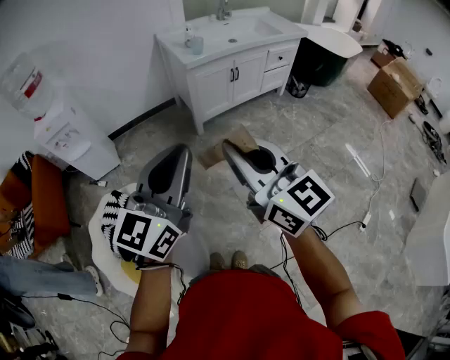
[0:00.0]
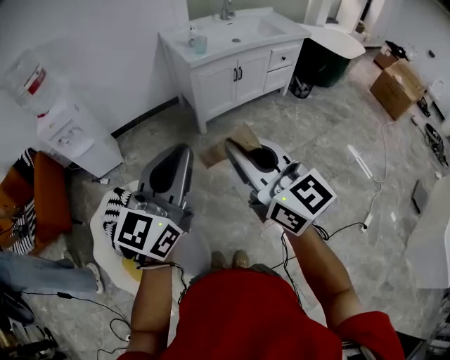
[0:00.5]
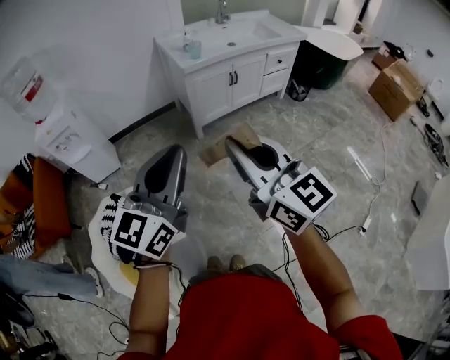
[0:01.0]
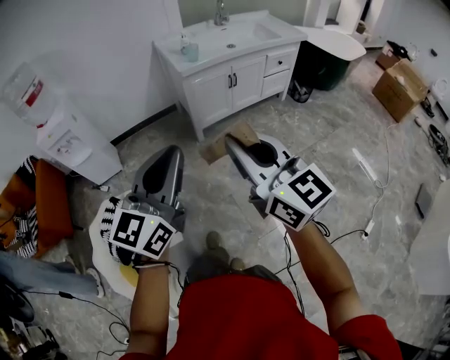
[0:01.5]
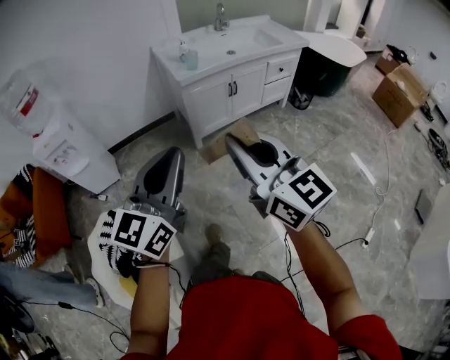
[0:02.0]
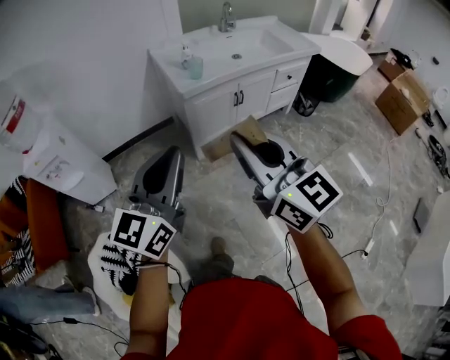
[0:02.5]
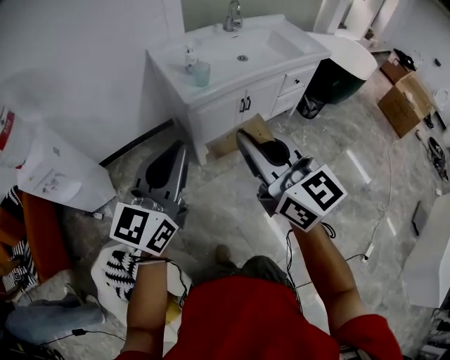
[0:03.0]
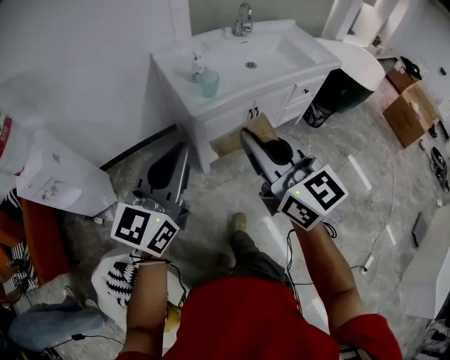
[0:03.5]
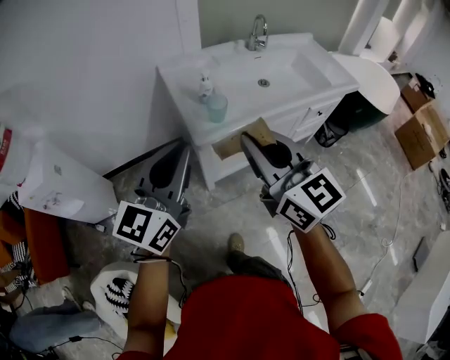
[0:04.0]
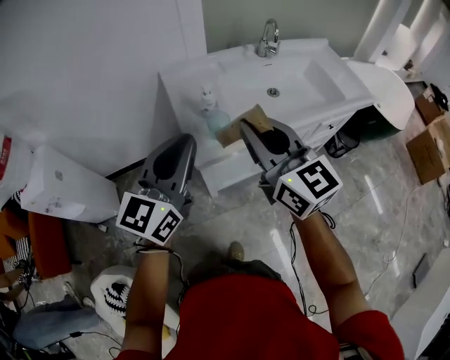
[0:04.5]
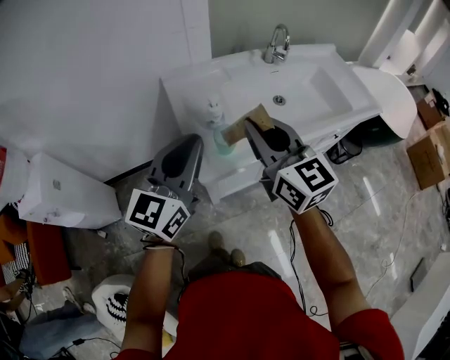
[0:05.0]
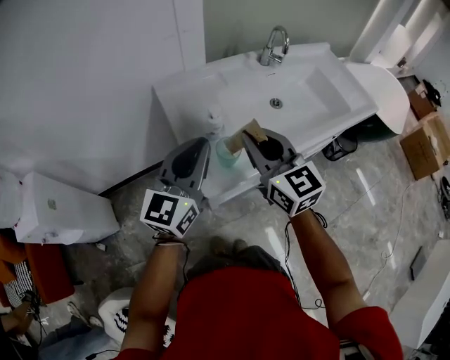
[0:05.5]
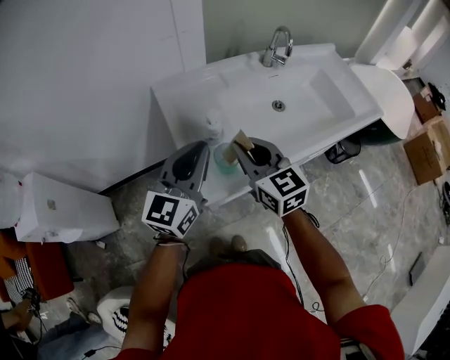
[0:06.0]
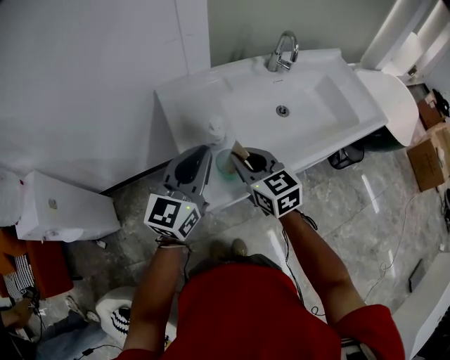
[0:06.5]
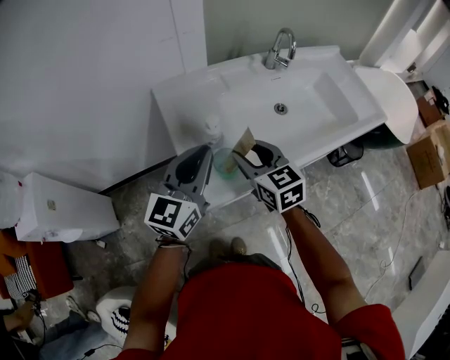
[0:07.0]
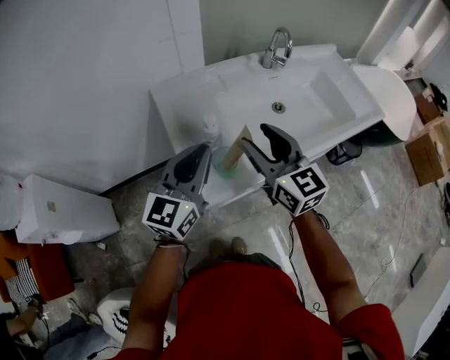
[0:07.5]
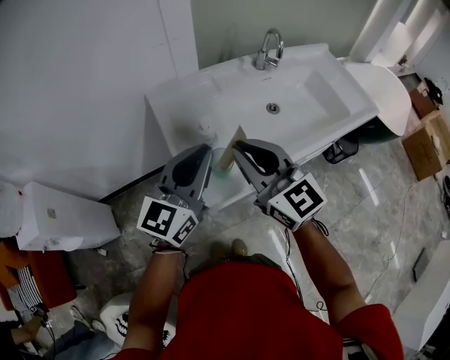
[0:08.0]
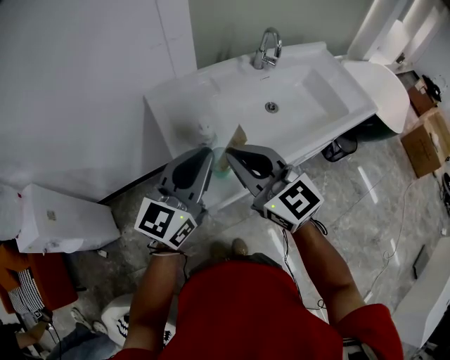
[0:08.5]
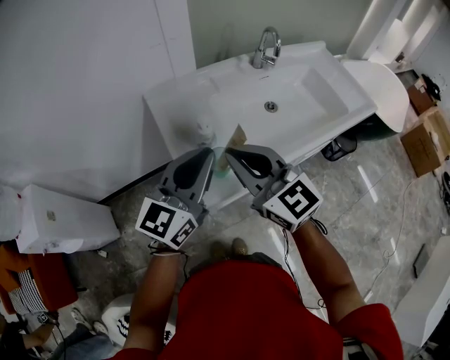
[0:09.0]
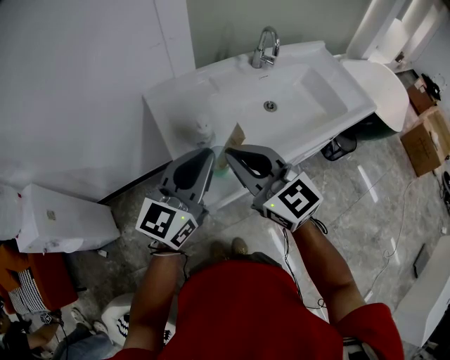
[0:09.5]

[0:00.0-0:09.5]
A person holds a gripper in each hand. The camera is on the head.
0:00.0 to 0:02.0: The left gripper heads forward, covering approximately 10 cm. Meanwhile the right gripper is displaced forward and to the right by some 10 cm.
0:02.0 to 0:04.0: The pair of grippers is taken forward, roughly 50 cm.
0:04.0 to 0:05.5: Both grippers move forward, some 25 cm.
0:05.5 to 0:07.5: The right gripper travels downward and back again, about 10 cm each way, and opens.
0:07.5 to 0:09.5: The left gripper moves approximately 5 cm; the right gripper moves backward and to the left, about 10 cm, and closes up.

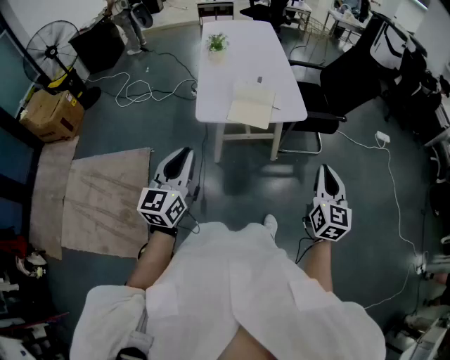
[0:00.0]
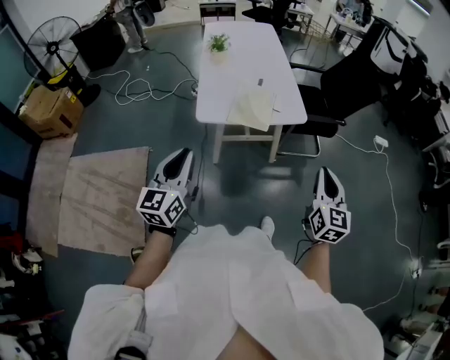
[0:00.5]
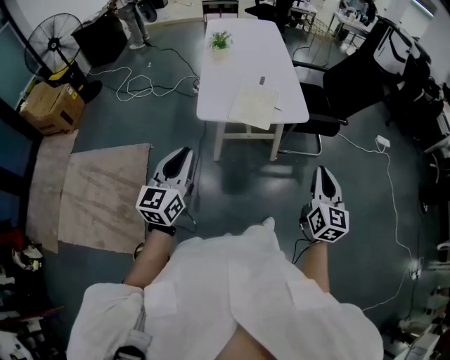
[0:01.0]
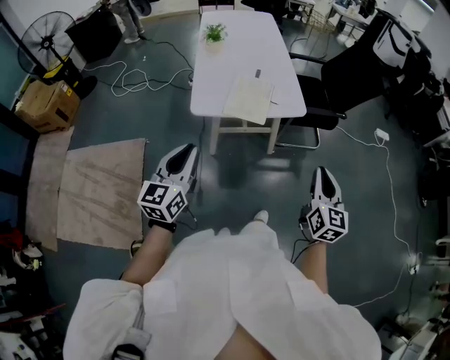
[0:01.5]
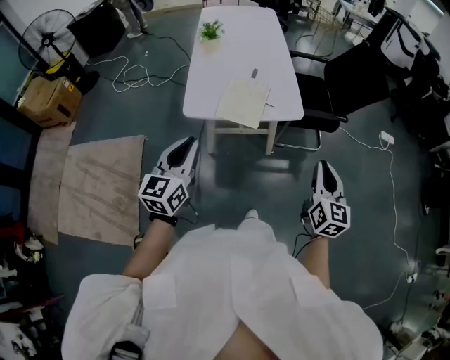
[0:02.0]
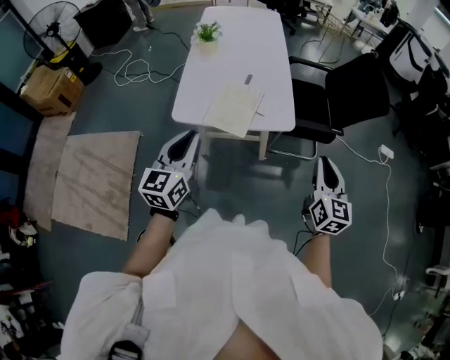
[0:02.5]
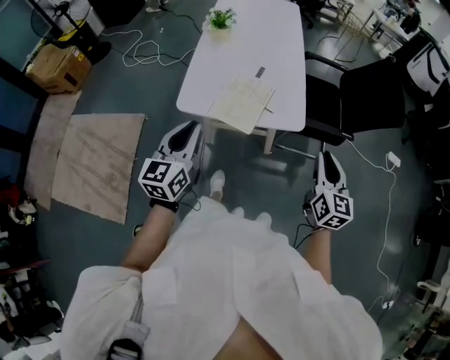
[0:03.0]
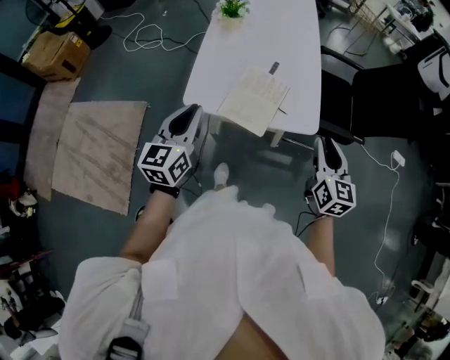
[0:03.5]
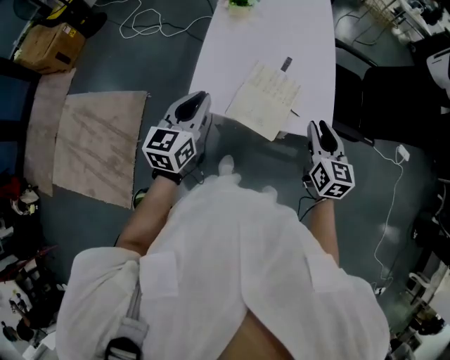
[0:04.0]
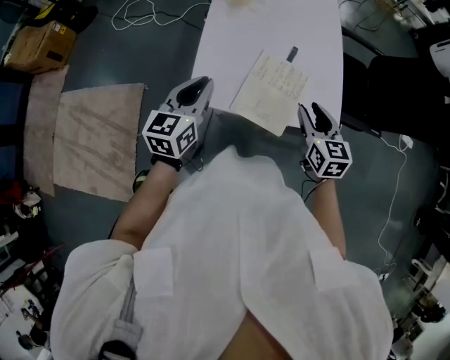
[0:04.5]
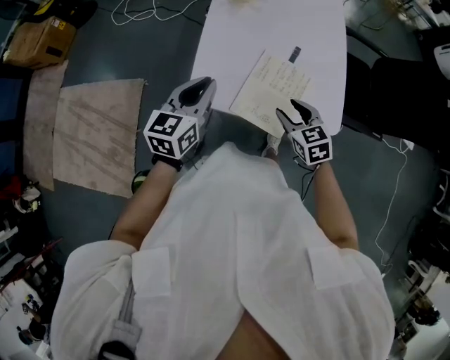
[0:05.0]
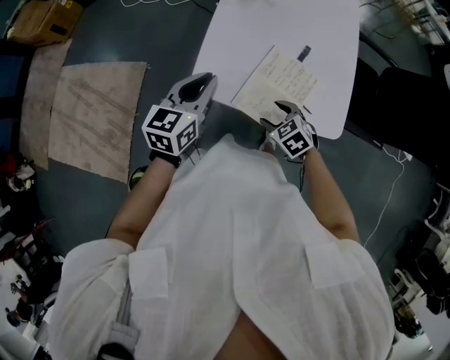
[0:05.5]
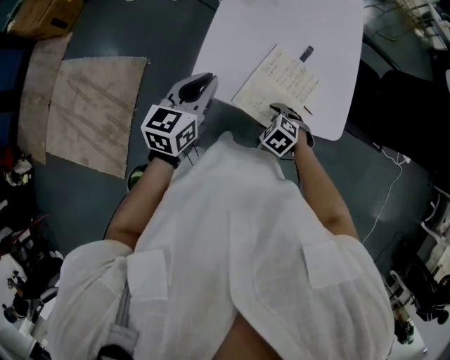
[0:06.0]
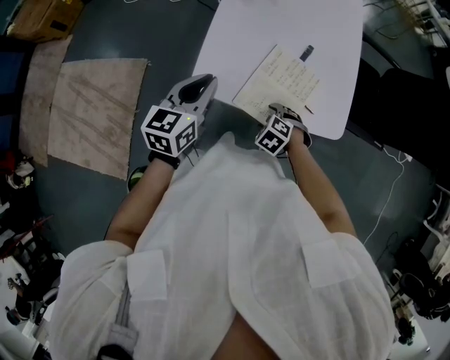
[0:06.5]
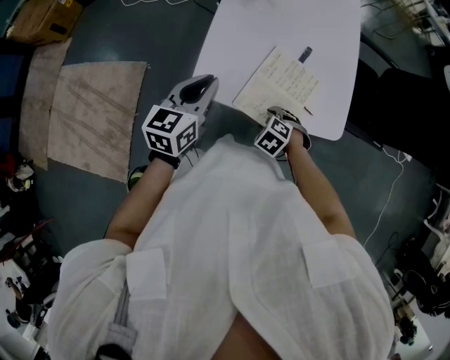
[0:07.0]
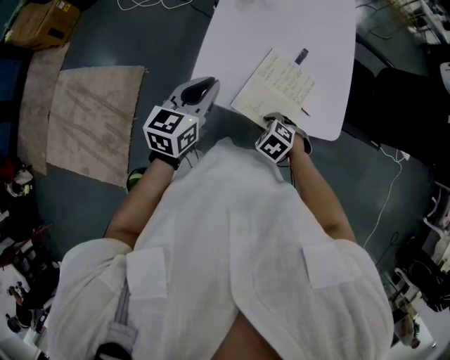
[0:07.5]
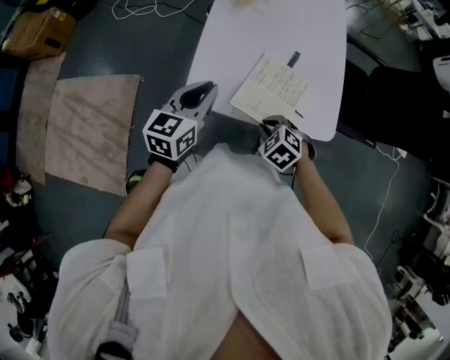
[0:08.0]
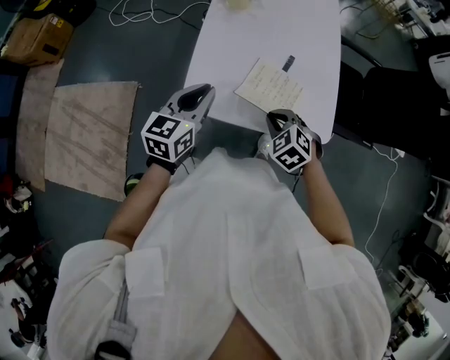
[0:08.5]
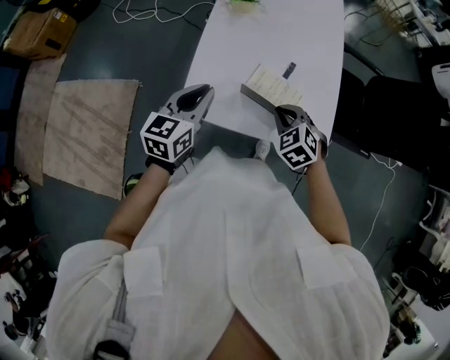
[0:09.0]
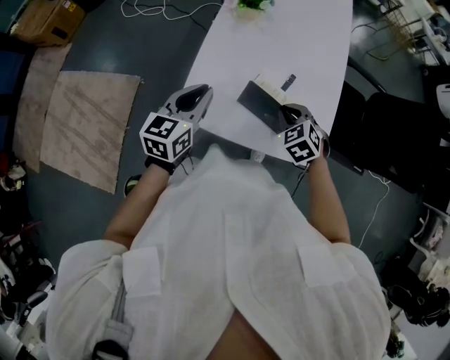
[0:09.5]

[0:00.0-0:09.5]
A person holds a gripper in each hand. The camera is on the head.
0:00.0 to 0:02.0: Both grippers move forward and to the right, some 10 cm.
0:02.0 to 0:04.0: Both grippers travel together forward, about 30 cm. The right gripper turns by some 20 degrees.
0:04.0 to 0:05.5: The left gripper heads forward and downward, covering some 10 cm; the right gripper travels downward and to the left by approximately 25 cm, tilts its fingers roughly 40 degrees downward, and opens.
0:05.5 to 0:07.5: The right gripper closes up.
0:07.5 to 0:09.5: The left gripper shifts by approximately 5 cm, while the right gripper changes place by approximately 20 cm, and swivels about 20 degrees.

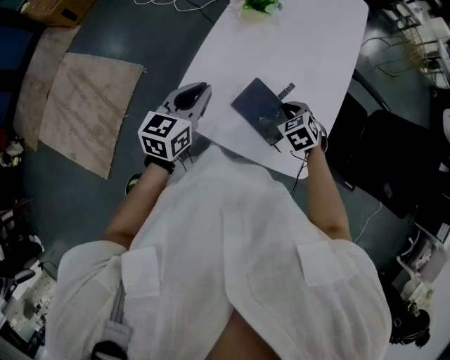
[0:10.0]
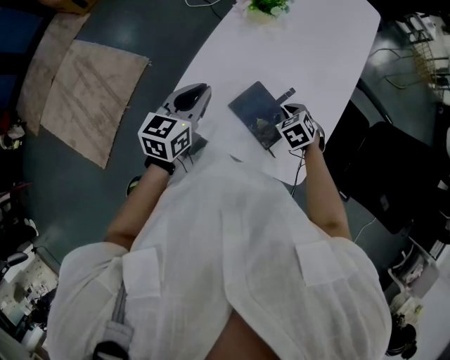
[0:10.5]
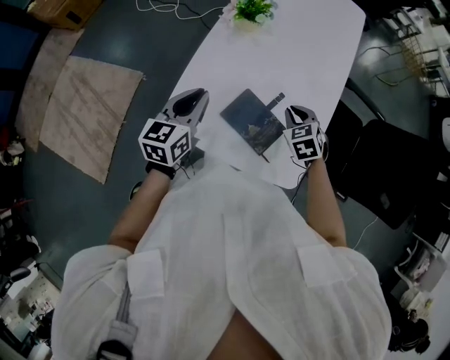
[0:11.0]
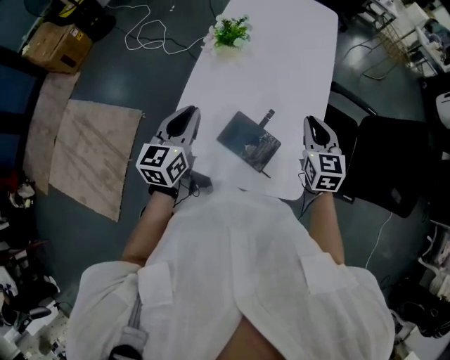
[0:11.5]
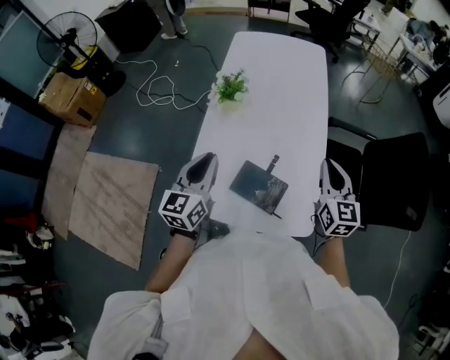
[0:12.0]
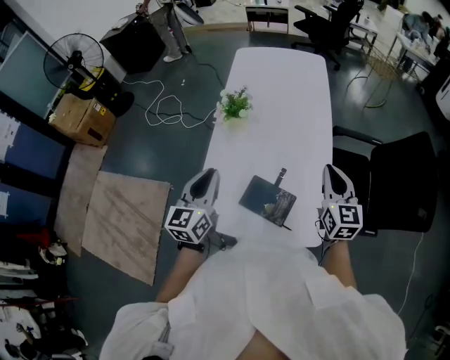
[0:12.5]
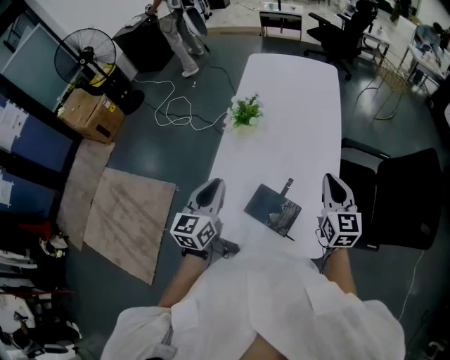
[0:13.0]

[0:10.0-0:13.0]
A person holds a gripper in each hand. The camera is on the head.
0:10.0 to 0:11.5: The right gripper moves upward and to the right, roughly 20 cm, and angles its fingers upward, by about 40 degrees. The left gripper travels upward by approximately 5 cm.
0:11.5 to 0:13.0: The right gripper moves upward, about 5 cm.

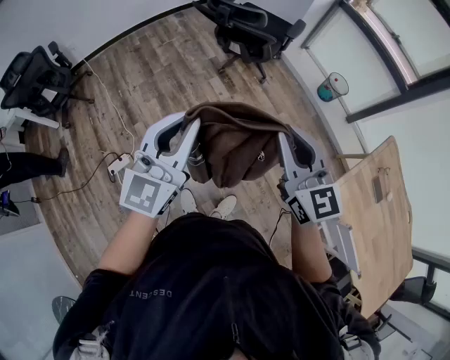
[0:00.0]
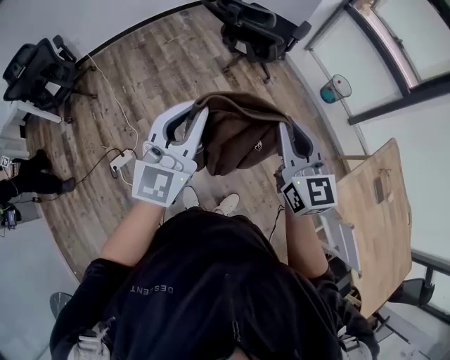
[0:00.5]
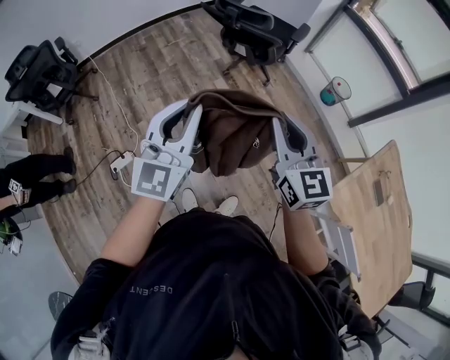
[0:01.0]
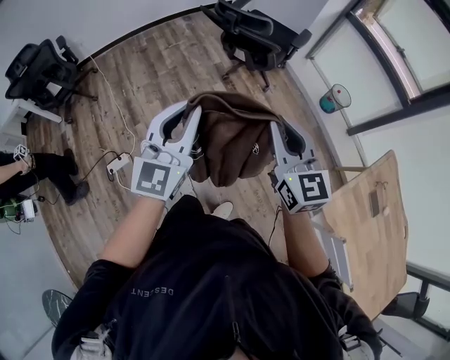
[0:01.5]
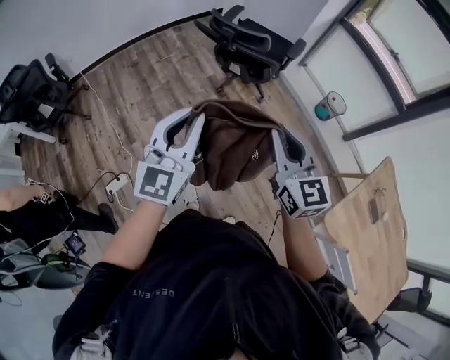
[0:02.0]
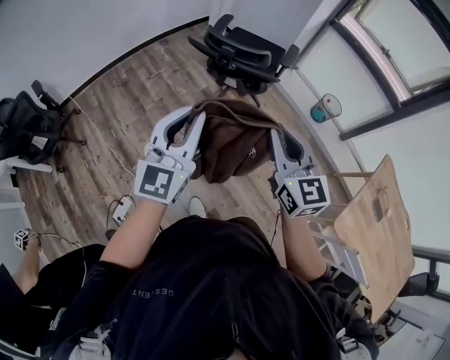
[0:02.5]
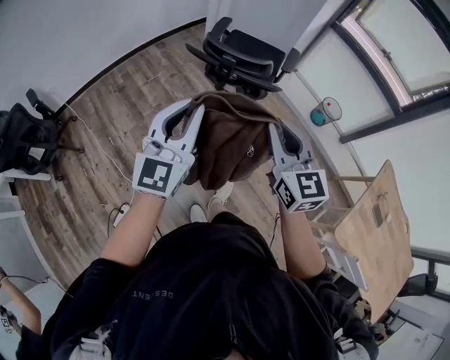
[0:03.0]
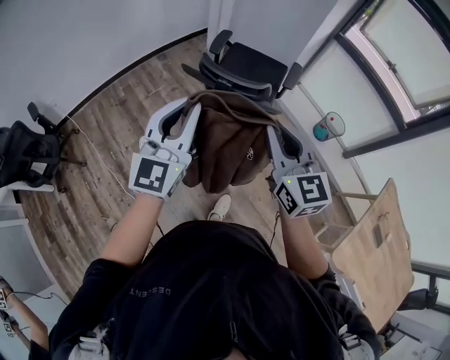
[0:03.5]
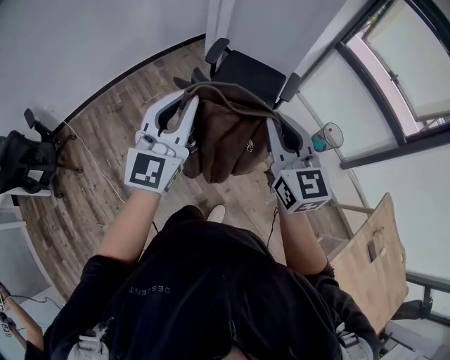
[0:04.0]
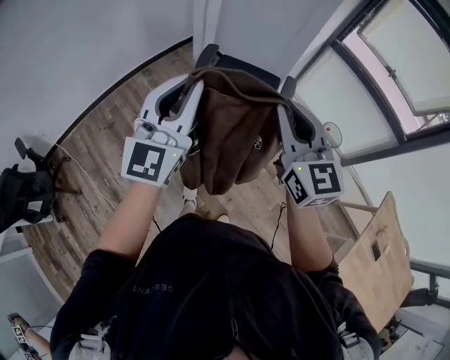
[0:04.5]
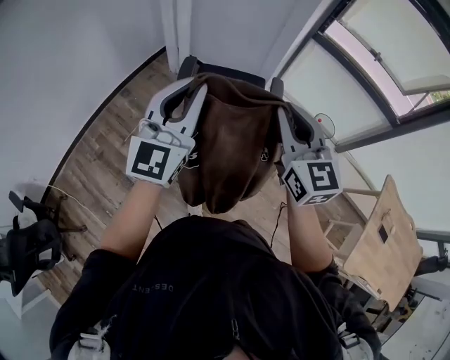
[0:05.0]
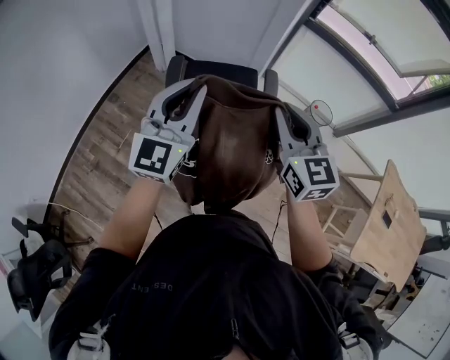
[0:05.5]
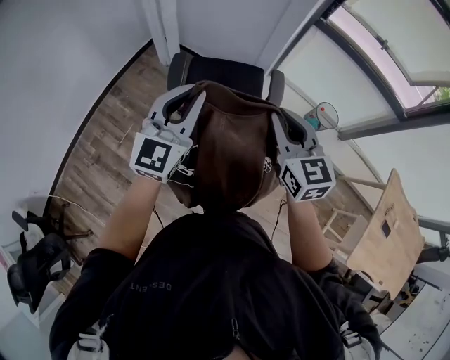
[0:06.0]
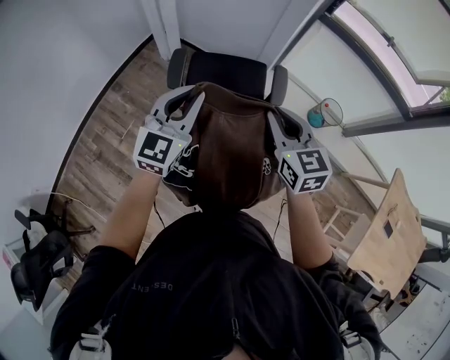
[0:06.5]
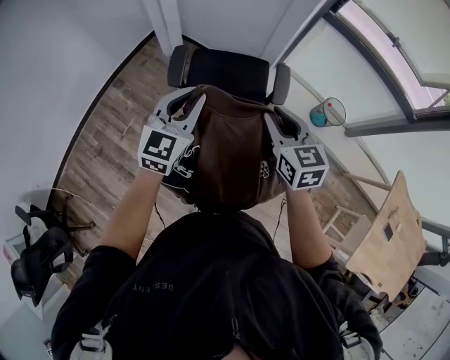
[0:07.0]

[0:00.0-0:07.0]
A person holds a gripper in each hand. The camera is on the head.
0:00.0 to 0:02.0: The two grippers go roughly 10 cm forward.
0:02.0 to 0:03.5: The grippers both shift forward by approximately 25 cm.
0:03.5 to 0:05.0: Both grippers move forward, about 30 cm.
0:05.0 to 0:07.0: The two grippers go some 20 cm downward and forward. The right gripper changes its angle by approximately 20 degrees; the left gripper changes its angle by approximately 20 degrees.
